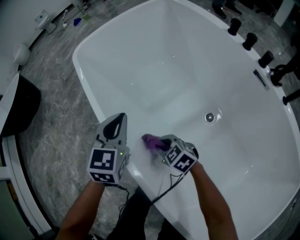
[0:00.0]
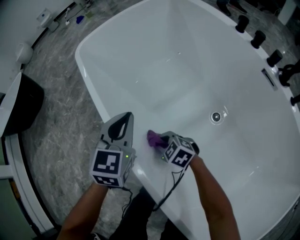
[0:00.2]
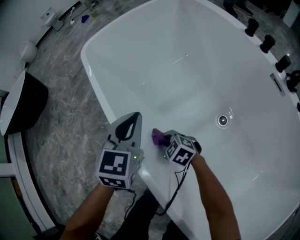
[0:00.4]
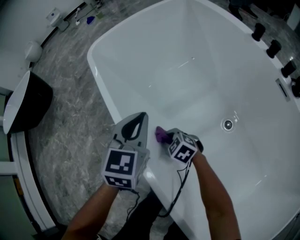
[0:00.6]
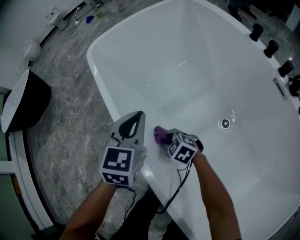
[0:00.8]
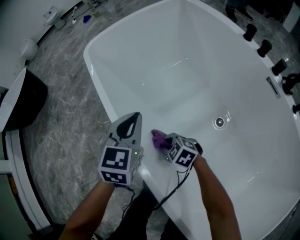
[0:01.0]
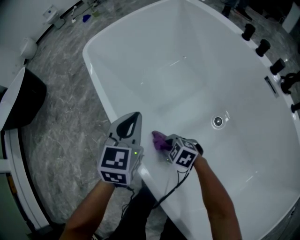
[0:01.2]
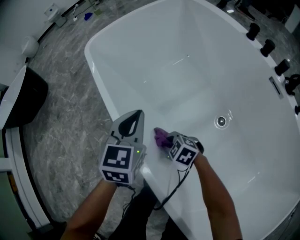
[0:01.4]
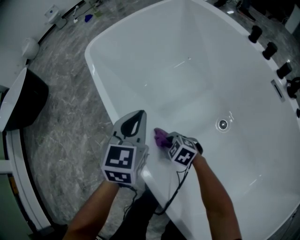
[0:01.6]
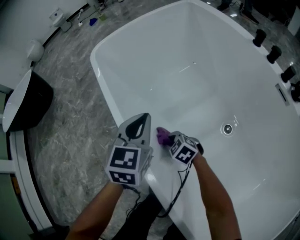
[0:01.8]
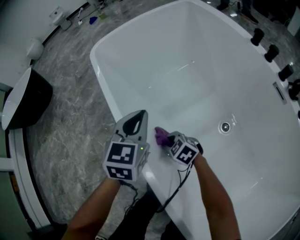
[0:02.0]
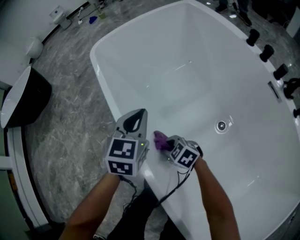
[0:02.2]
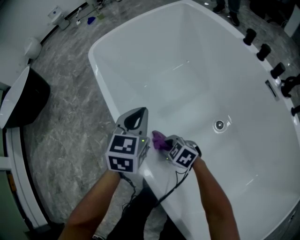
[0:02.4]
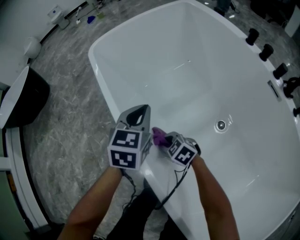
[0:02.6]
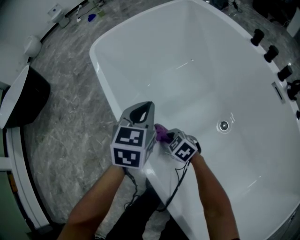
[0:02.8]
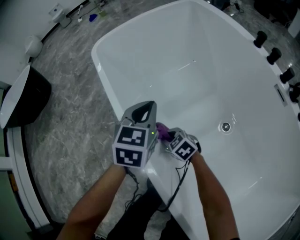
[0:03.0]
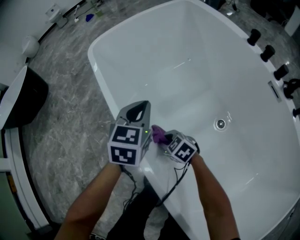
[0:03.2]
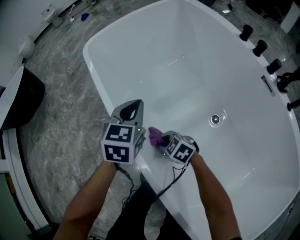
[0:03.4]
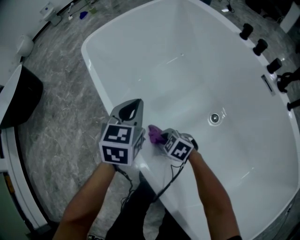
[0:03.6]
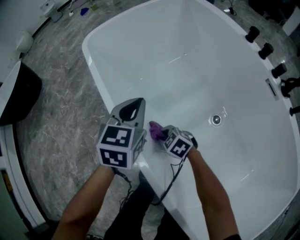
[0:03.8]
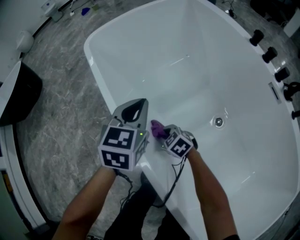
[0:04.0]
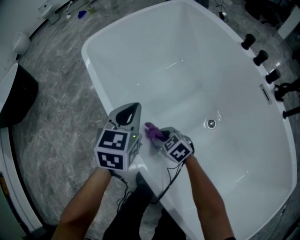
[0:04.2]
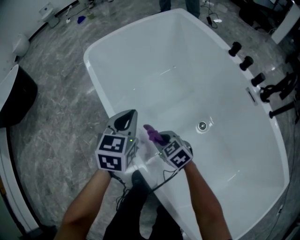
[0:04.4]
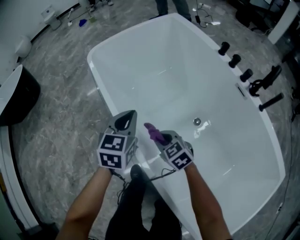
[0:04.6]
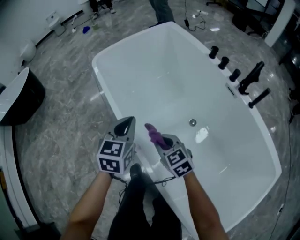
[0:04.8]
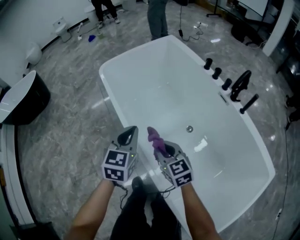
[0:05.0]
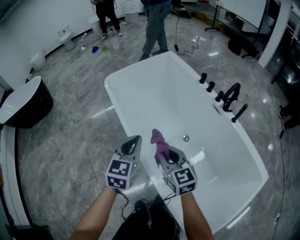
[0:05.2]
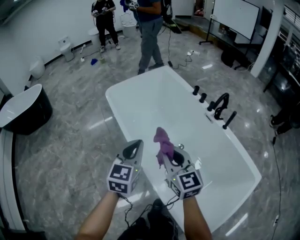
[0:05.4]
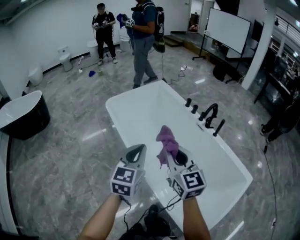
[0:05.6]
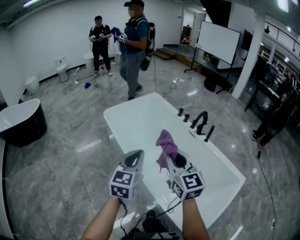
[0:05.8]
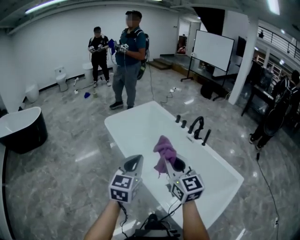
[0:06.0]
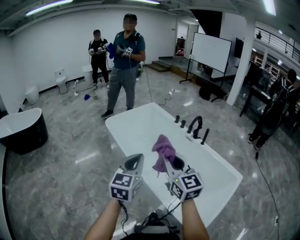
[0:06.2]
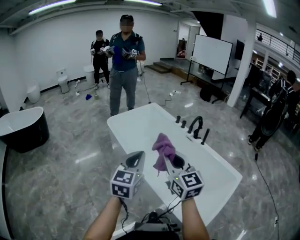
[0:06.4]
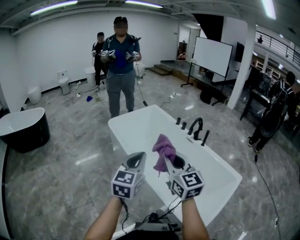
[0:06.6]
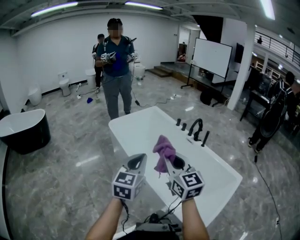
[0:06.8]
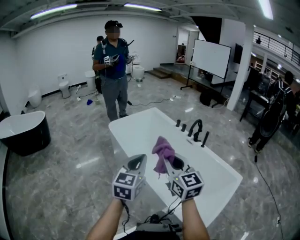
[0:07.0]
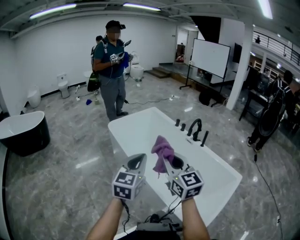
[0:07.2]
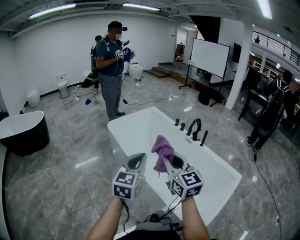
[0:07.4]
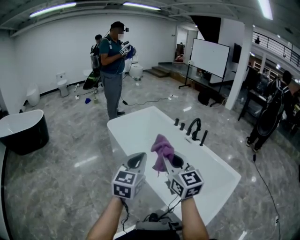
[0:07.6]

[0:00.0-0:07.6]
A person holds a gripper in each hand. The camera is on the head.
0:00.0 to 0:01.6: The right gripper goes forward and backward, roughly 10 cm each way, reversing 2 times.
0:01.6 to 0:03.0: The grippers move only a little.
0:03.0 to 0:04.6: The right gripper travels upward and backward by about 20 cm, while the left gripper shifts about 15 cm upward and backward.
0:04.6 to 0:06.0: The left gripper moves backward and upward, some 50 cm, and turns by some 20 degrees; the right gripper shifts approximately 60 cm upward and backward, and points its fingers about 40 degrees further upward.
0:06.0 to 0:07.6: Both grippers travel together backward, about 5 cm.

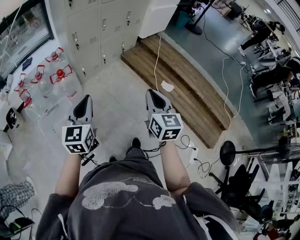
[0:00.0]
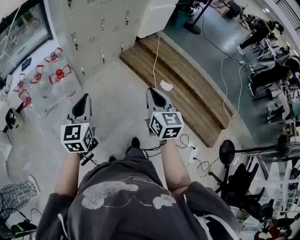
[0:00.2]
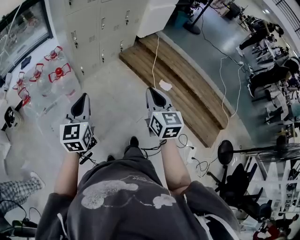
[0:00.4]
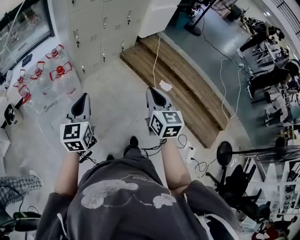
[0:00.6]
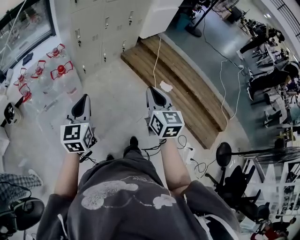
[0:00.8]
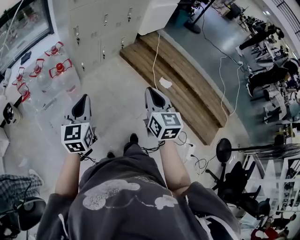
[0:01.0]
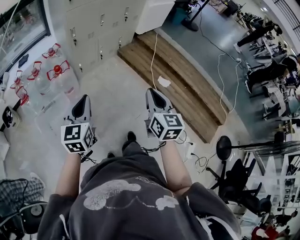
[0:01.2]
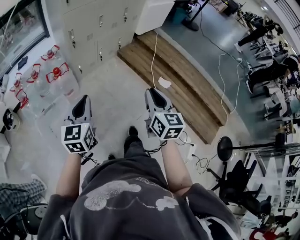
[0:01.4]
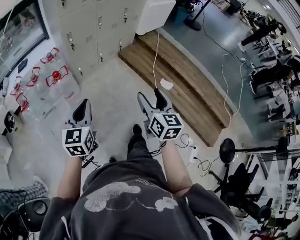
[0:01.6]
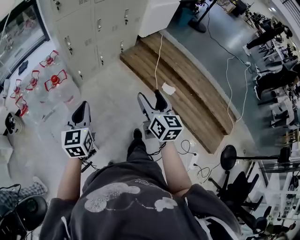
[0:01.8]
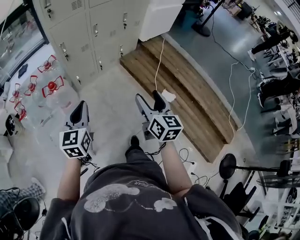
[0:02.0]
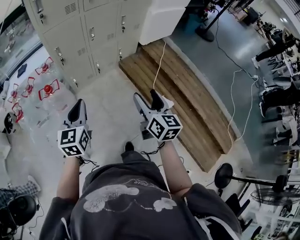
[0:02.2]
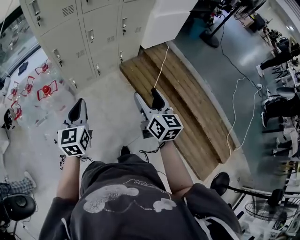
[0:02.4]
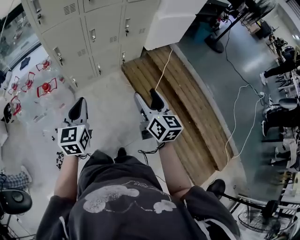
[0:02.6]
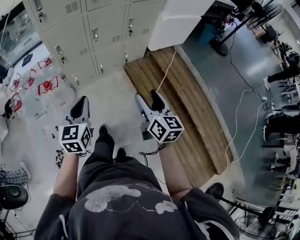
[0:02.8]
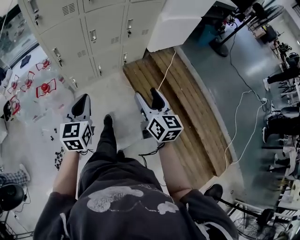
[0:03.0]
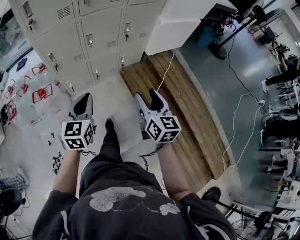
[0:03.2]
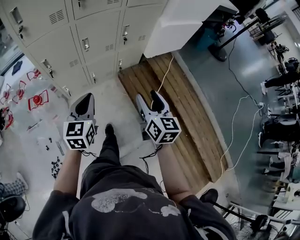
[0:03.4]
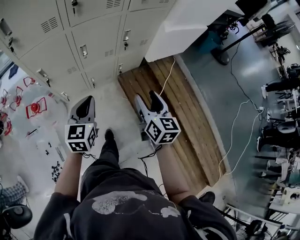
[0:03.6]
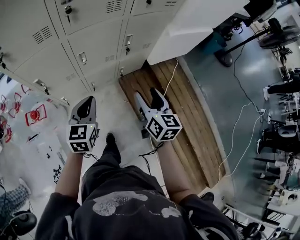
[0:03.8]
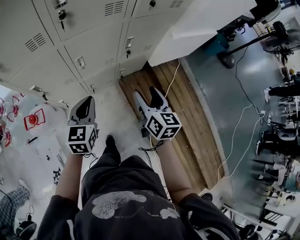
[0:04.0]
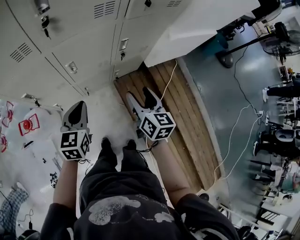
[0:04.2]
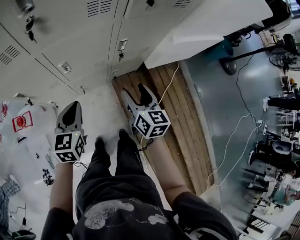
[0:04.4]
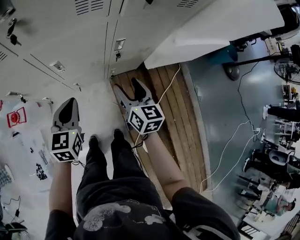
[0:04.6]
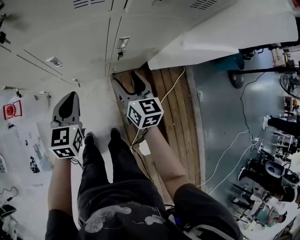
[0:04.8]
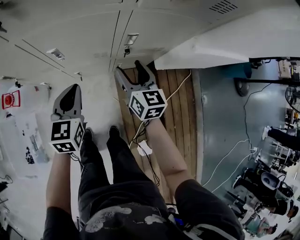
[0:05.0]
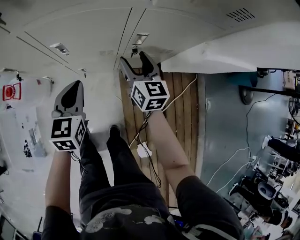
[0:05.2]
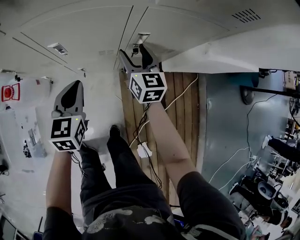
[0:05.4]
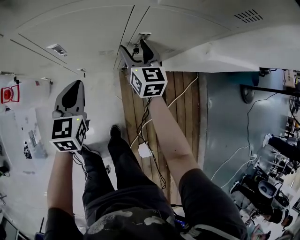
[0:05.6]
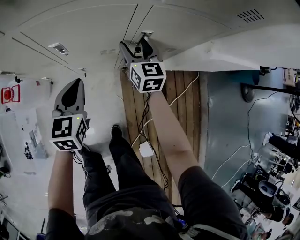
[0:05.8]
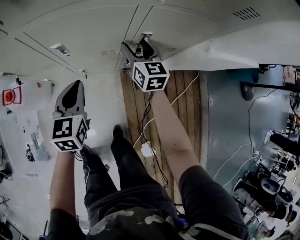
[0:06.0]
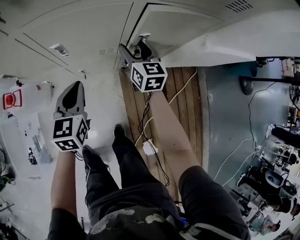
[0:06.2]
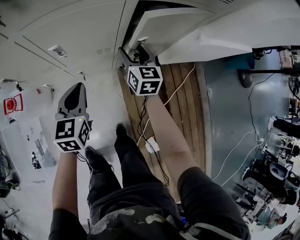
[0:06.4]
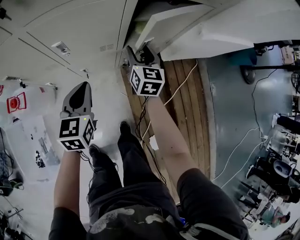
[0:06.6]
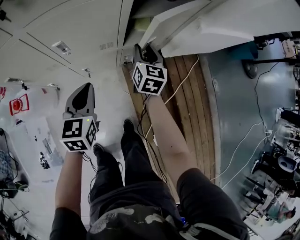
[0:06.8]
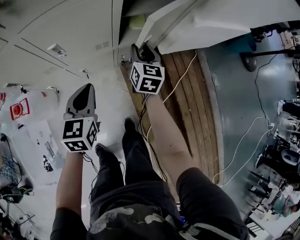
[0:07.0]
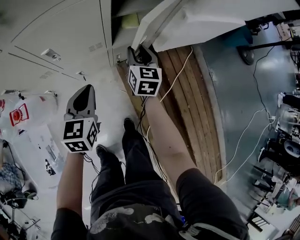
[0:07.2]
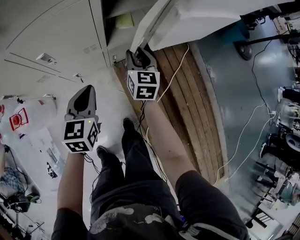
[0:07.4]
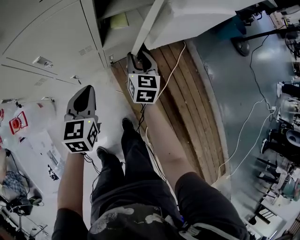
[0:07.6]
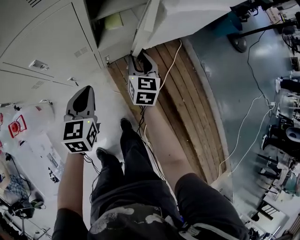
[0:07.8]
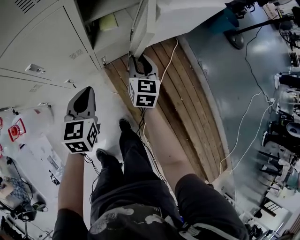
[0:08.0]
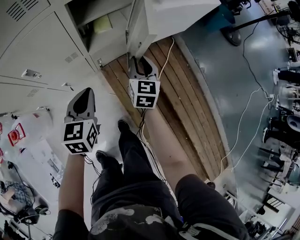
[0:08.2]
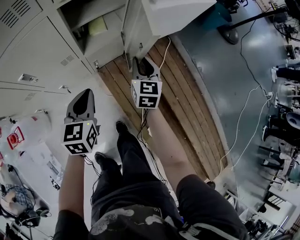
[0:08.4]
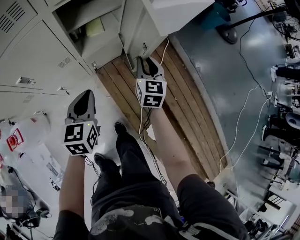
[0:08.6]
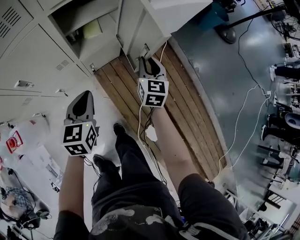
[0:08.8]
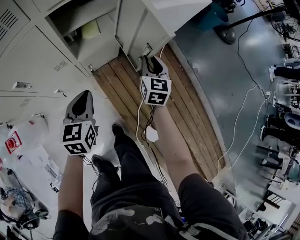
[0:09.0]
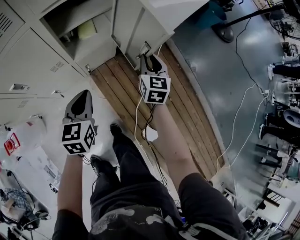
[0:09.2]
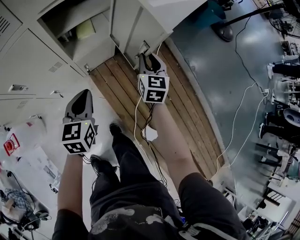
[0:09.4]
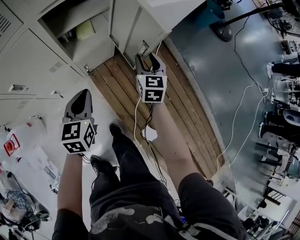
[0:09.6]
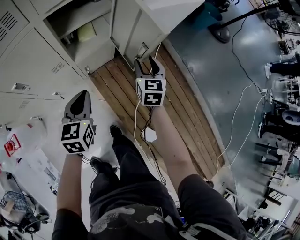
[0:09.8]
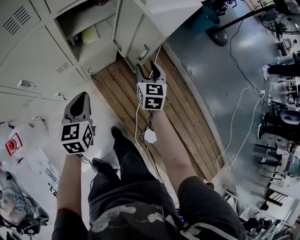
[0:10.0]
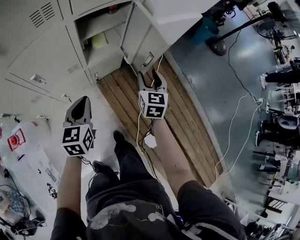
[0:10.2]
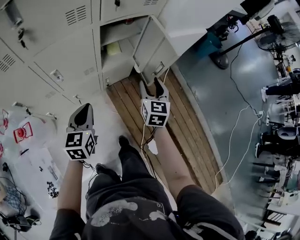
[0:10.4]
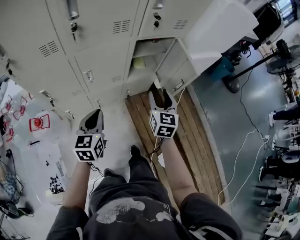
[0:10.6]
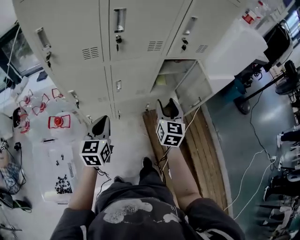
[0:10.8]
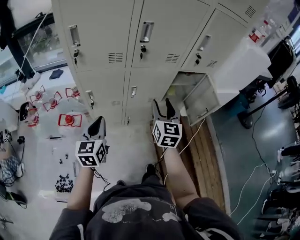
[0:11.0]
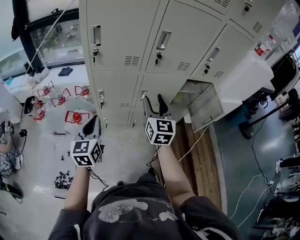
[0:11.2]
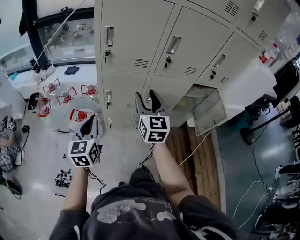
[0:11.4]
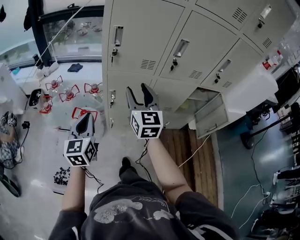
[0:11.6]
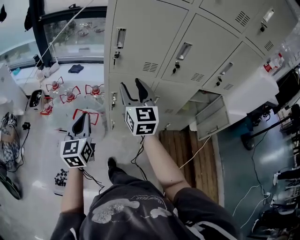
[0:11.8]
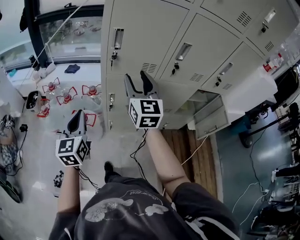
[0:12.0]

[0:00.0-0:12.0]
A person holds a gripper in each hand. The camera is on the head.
0:00.0 to 0:01.6: The right gripper ends up some 5 cm from where it was, and opens, while the left gripper shifts by approximately 5 cm.
0:01.6 to 0:03.0: Both grippers travel together forward and to the right, roughly 35 cm.
0:03.0 to 0:04.4: The grippers both shift forward by approximately 40 cm.
0:04.4 to 0:06.0: The right gripper heads forward and downward, covering roughly 25 cm, and changes its angle by about 20 degrees. The left gripper is displaced downward and forward by about 10 cm.
0:06.0 to 0:07.6: The grippers both shift to the right and backward by about 15 cm. The right gripper rotates some 30 degrees, and closes.
0:07.6 to 0:09.0: The left gripper shifts about 10 cm to the right, while the right gripper is displaced to the right by roughly 20 cm.
0:09.0 to 0:10.4: The left gripper is displaced to the left, backward and upward by some 15 cm. The right gripper travels upward, backward and to the left by about 20 cm, and opens.
0:10.4 to 0:12.0: The two grippers travel together, some 50 cm. The right gripper rotates roughly 40 degrees, while the left gripper changes its angle by about 40 degrees.

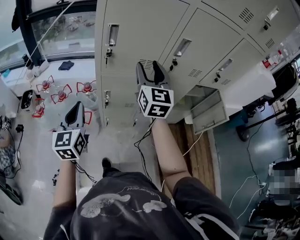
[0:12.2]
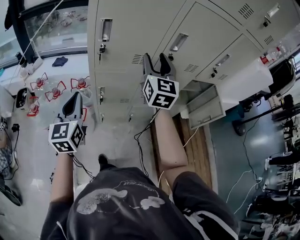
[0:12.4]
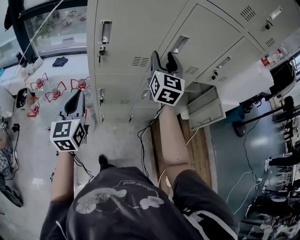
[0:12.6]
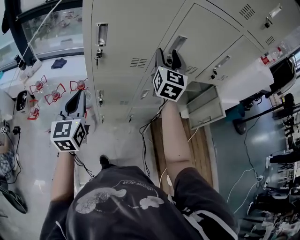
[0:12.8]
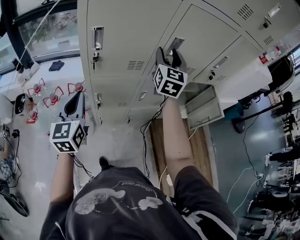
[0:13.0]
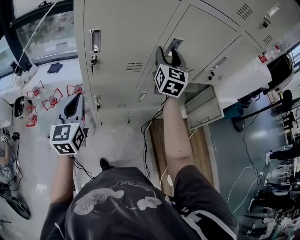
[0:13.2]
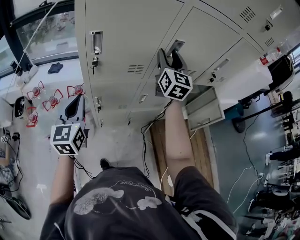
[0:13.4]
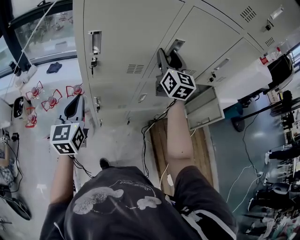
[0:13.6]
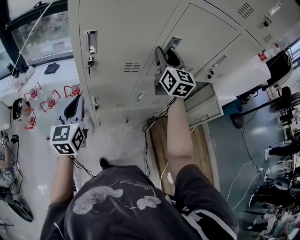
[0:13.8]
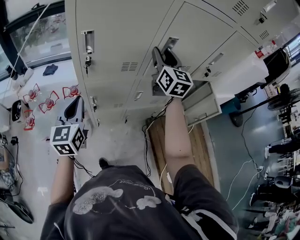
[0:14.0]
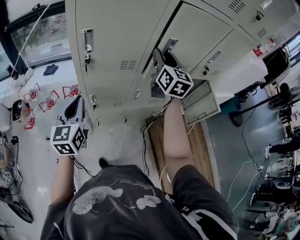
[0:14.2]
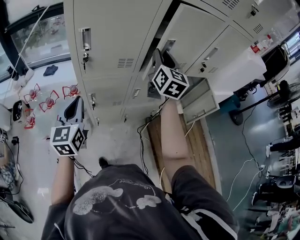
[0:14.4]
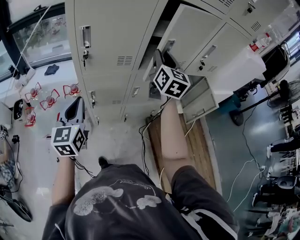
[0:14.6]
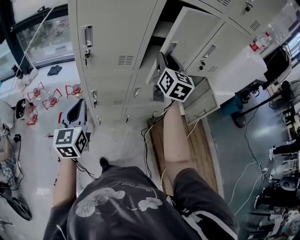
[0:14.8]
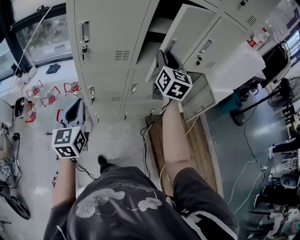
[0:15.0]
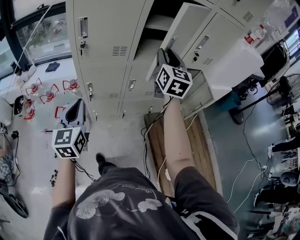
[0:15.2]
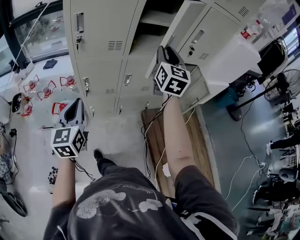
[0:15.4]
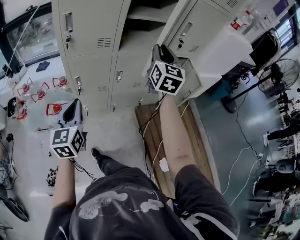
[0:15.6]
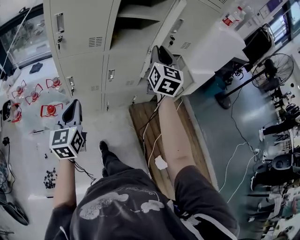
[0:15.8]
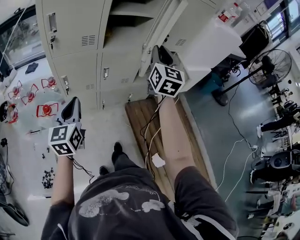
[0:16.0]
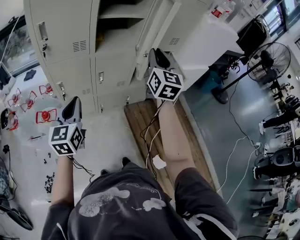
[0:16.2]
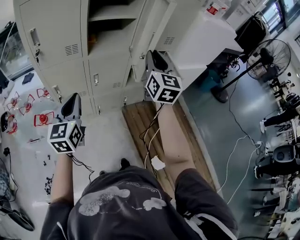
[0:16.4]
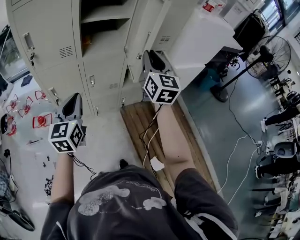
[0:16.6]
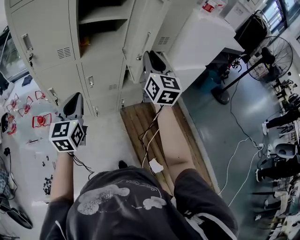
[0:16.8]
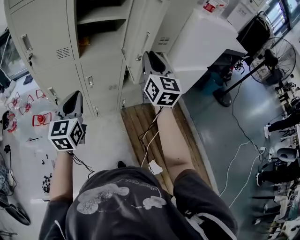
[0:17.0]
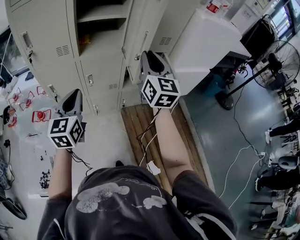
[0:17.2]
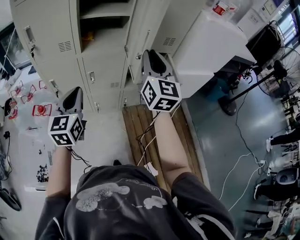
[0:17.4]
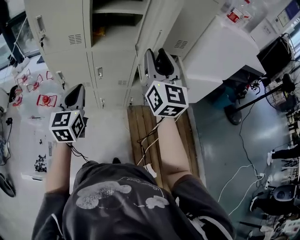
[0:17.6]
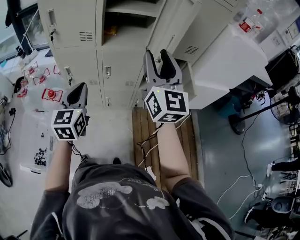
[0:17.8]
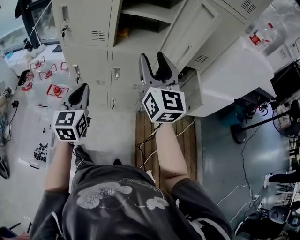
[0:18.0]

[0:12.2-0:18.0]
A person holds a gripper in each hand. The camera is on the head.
0:12.2 to 0:13.6: The right gripper moves forward and to the right, some 15 cm, while the left gripper heads forward, covering some 10 cm.
0:13.6 to 0:15.0: Both grippers move backward and to the right, roughly 10 cm.
0:15.0 to 0:16.6: The left gripper heads to the right, covering approximately 25 cm. The right gripper is displaced to the right and backward by approximately 25 cm.
0:16.6 to 0:18.0: The right gripper moves to the left, about 10 cm, swivels roughly 20 degrees, and opens its fingers.
